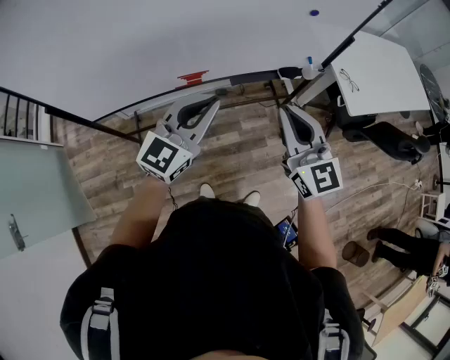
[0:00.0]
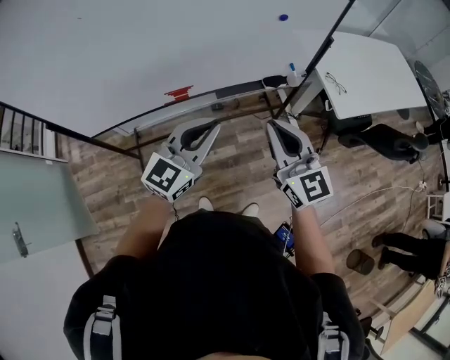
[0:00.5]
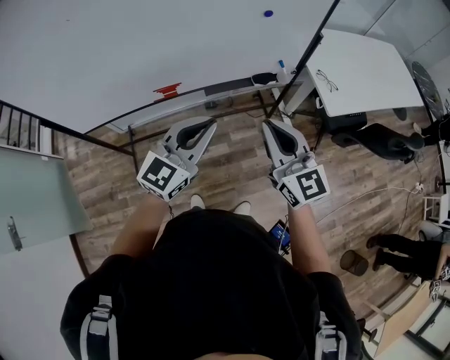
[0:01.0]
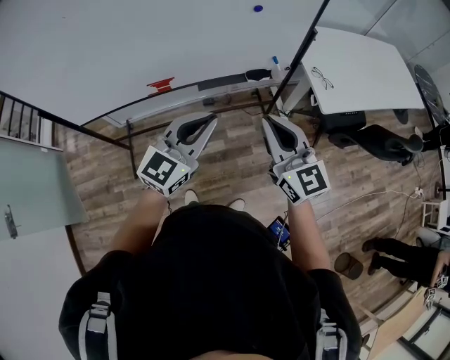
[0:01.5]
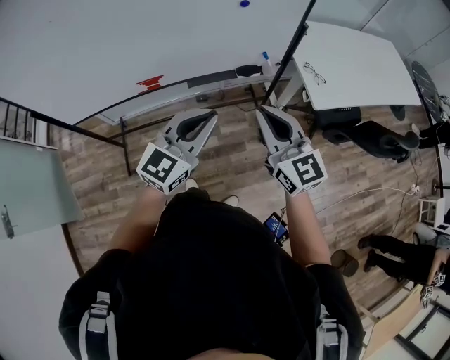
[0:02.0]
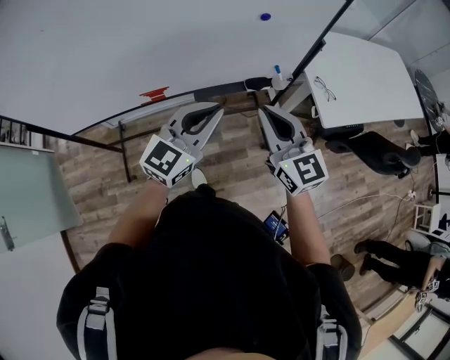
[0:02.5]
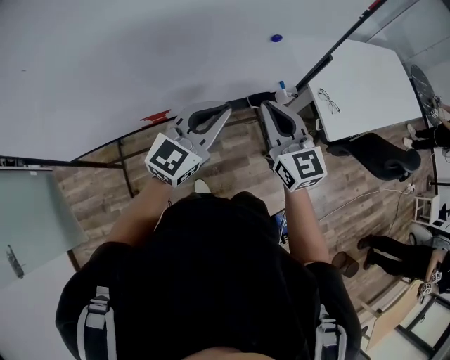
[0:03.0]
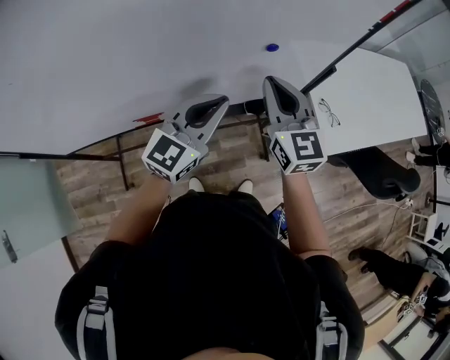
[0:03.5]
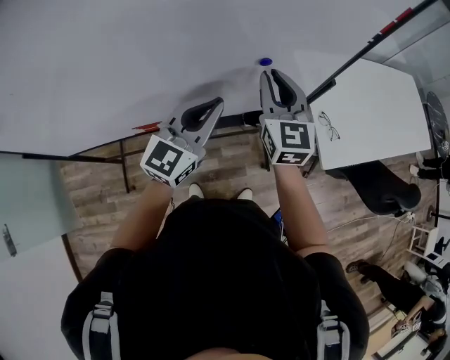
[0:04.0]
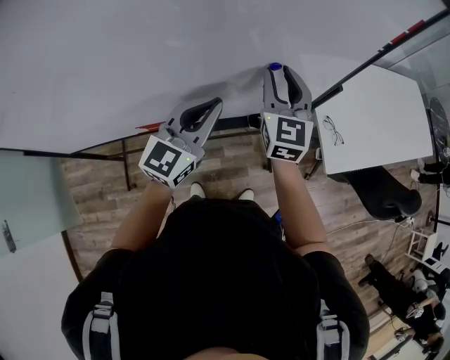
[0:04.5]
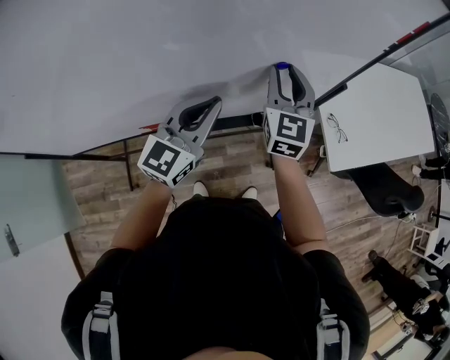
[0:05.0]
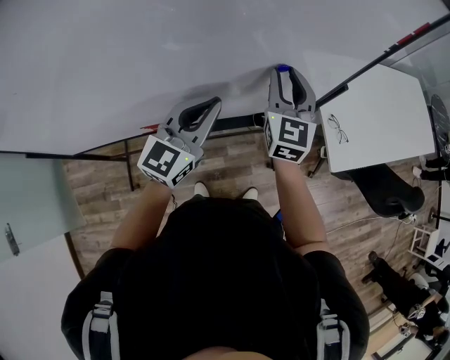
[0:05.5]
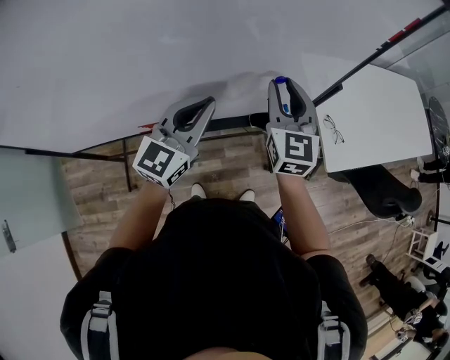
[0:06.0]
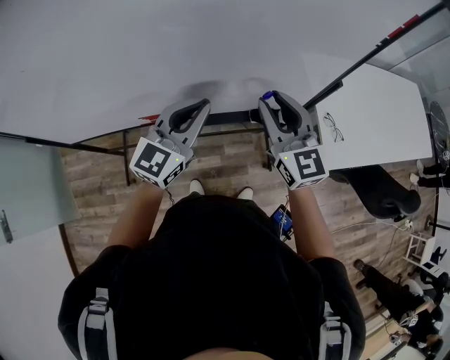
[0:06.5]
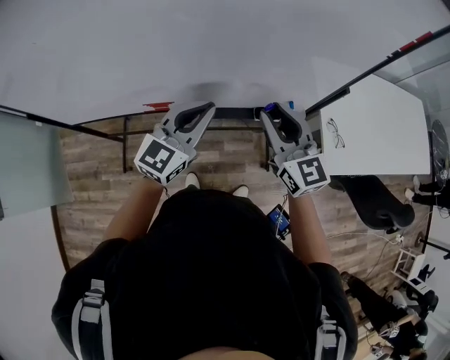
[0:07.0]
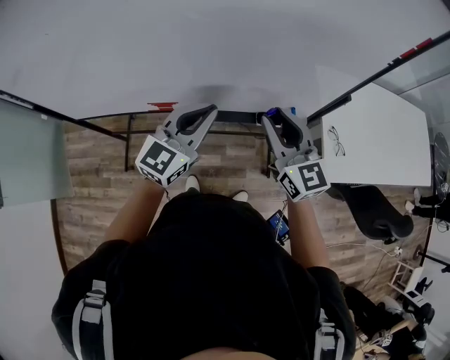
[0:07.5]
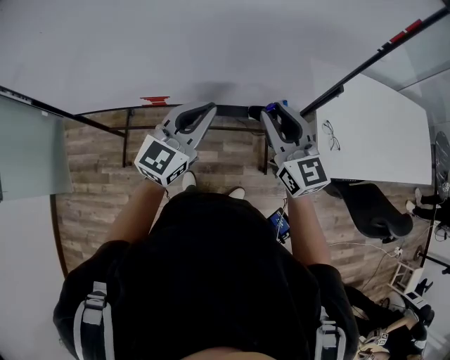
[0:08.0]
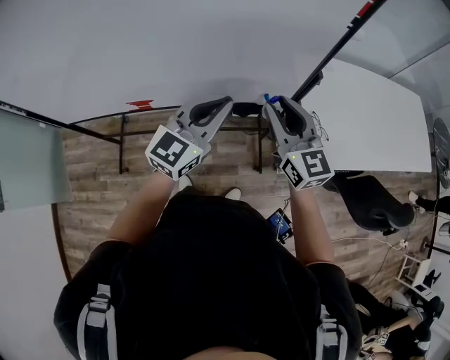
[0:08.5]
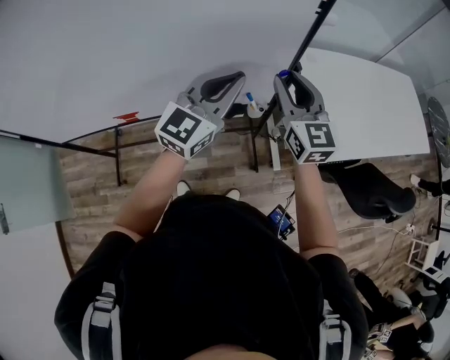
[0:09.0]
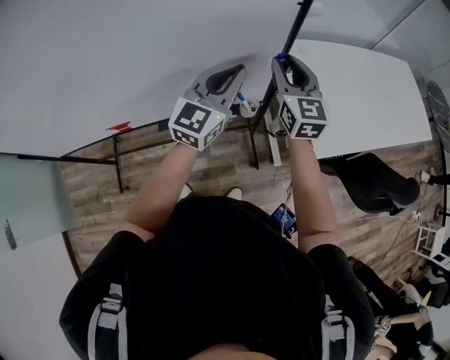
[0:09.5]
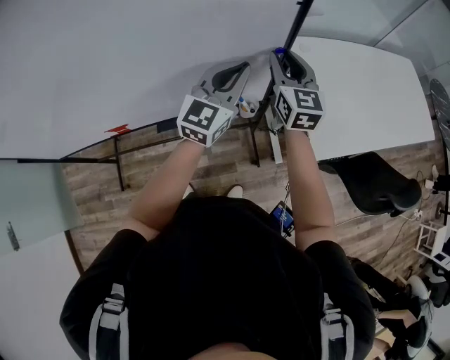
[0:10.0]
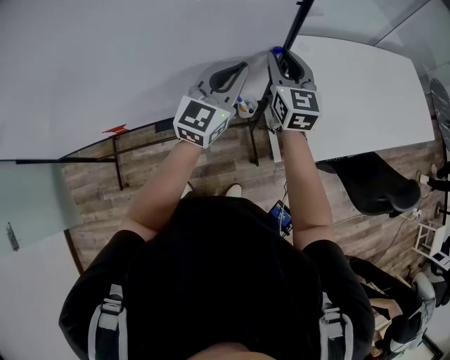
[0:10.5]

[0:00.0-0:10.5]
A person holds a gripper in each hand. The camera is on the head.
0:00.0 to 0:02.0: The grippers both shift to the right by approximately 20 cm.
0:02.0 to 0:04.0: The grippers both shift forward by roughly 30 cm.
0:04.0 to 0:06.5: The left gripper moves roughly 5 cm. The right gripper heads backward, covering some 10 cm.
0:06.5 to 0:08.5: Both grippers move to the right, some 15 cm.
0:08.5 to 0:10.5: The two grippers go roughly 20 cm forward and to the right. The right gripper rotates about 20 degrees.

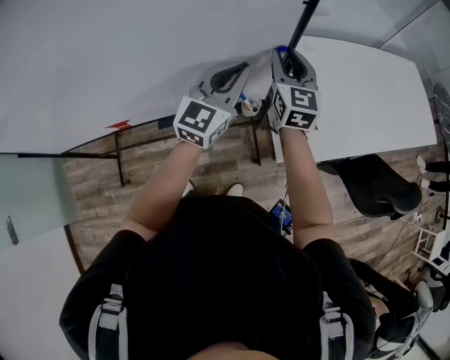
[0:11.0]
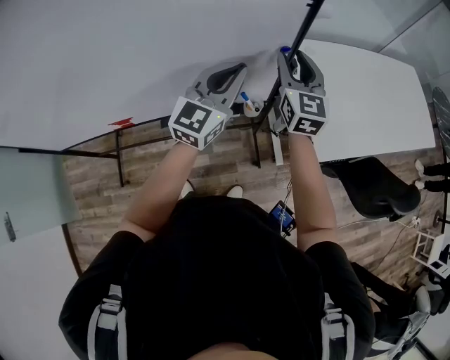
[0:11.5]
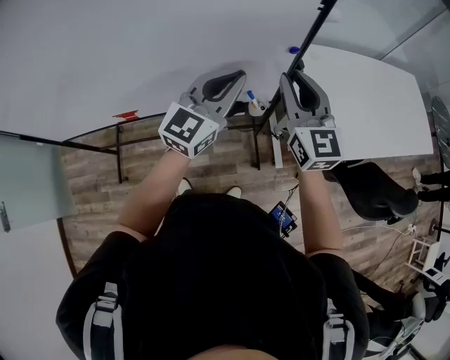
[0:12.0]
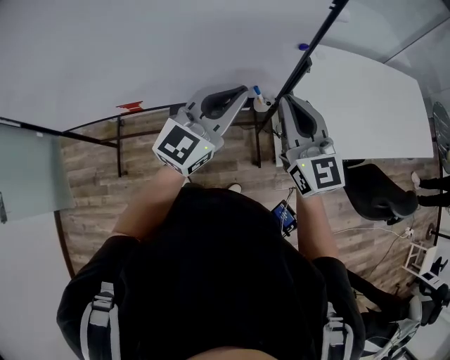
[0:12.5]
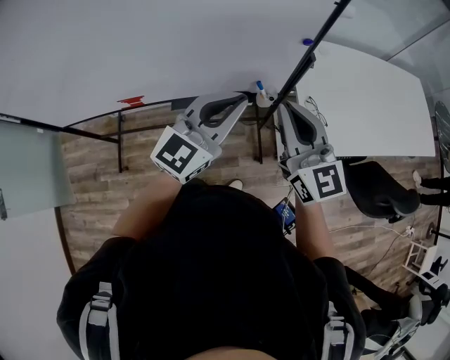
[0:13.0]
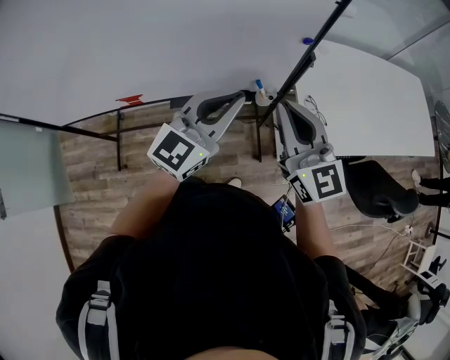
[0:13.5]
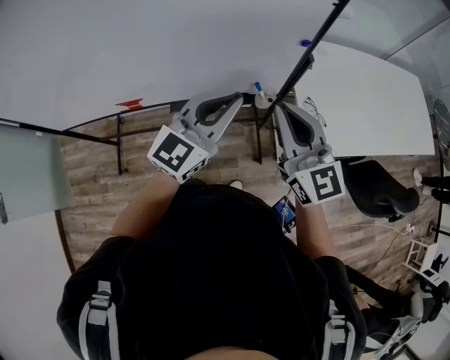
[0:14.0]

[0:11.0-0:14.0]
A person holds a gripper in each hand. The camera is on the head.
0:11.0 to 0:12.5: The left gripper moves backward, approximately 15 cm. The right gripper is displaced backward by some 20 cm, rotates roughly 20 degrees, and closes.
0:12.5 to 0:14.0: The grippers make only small movements.

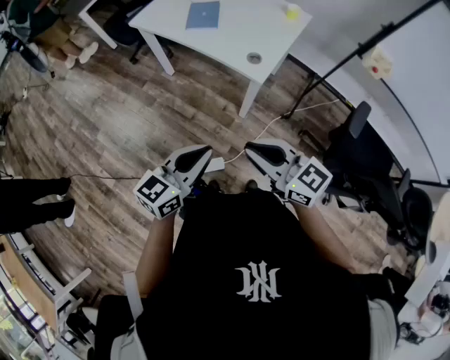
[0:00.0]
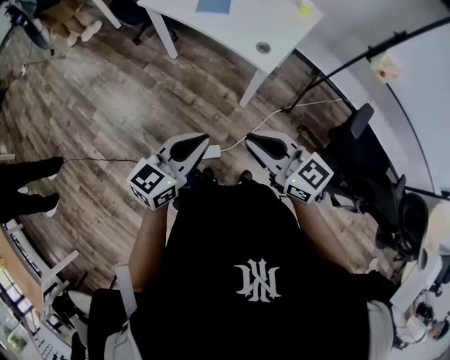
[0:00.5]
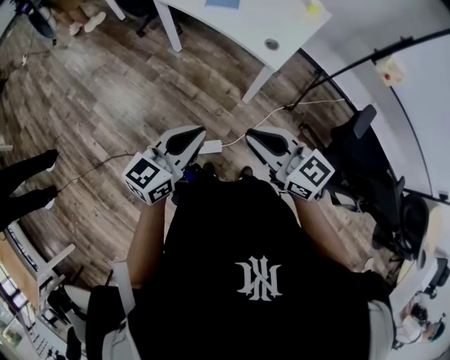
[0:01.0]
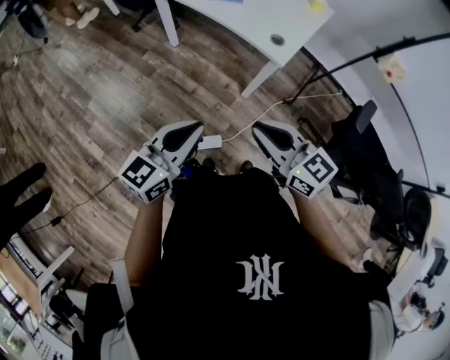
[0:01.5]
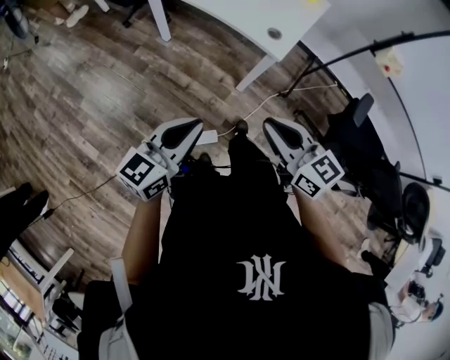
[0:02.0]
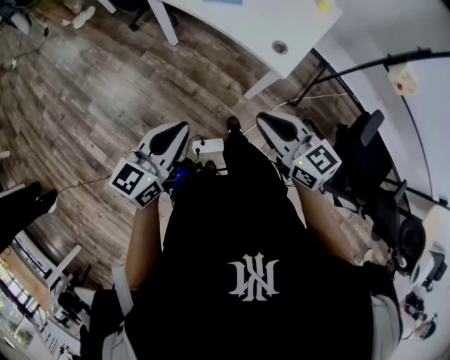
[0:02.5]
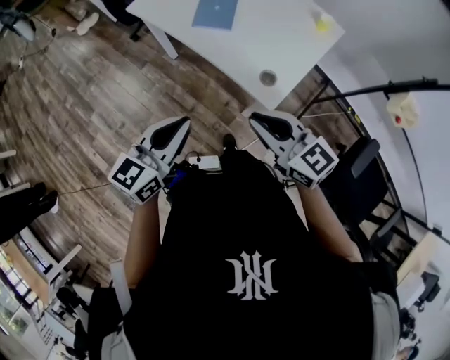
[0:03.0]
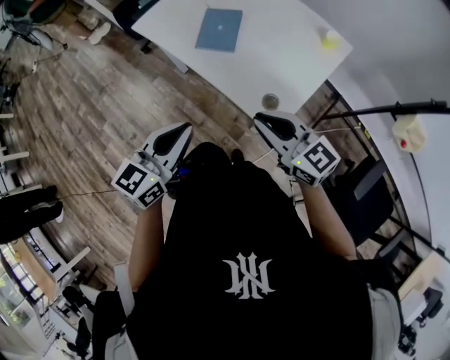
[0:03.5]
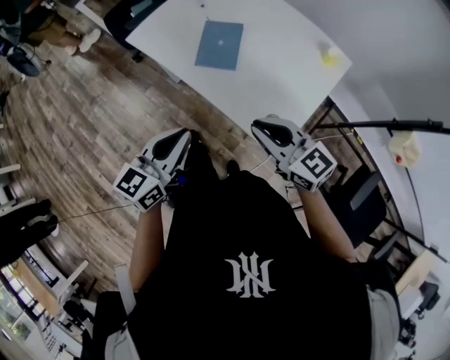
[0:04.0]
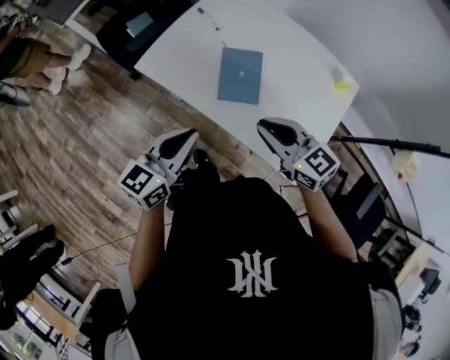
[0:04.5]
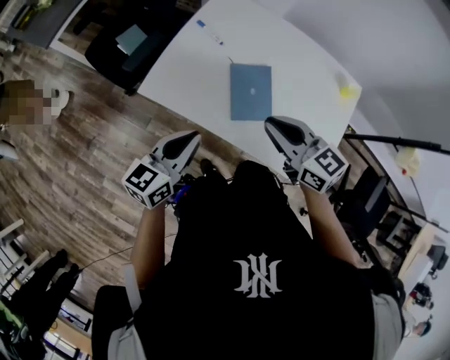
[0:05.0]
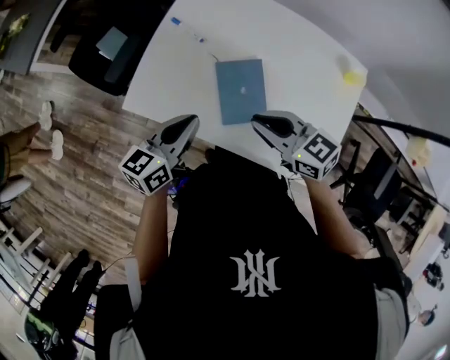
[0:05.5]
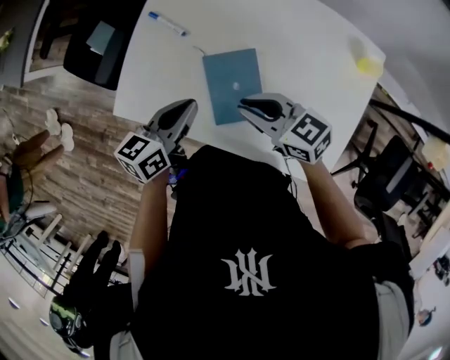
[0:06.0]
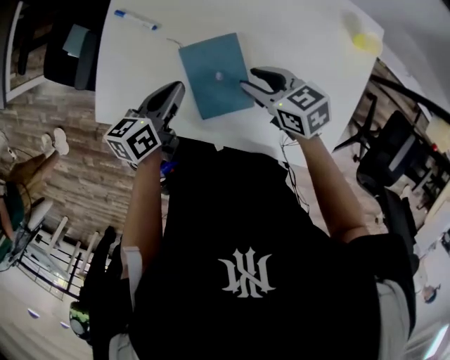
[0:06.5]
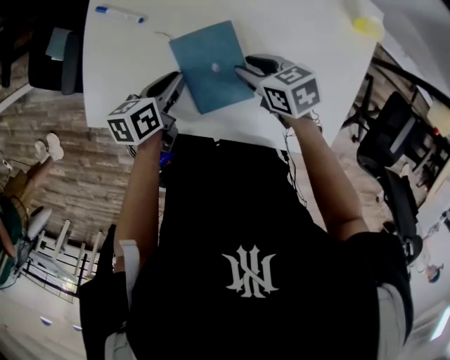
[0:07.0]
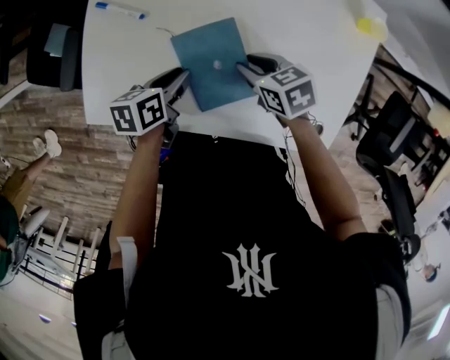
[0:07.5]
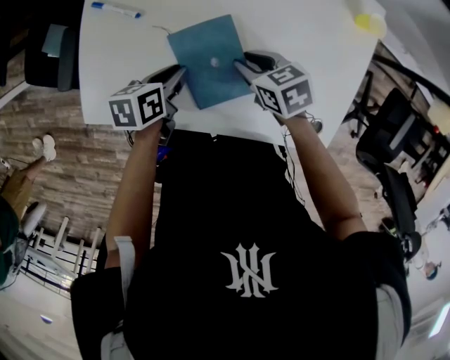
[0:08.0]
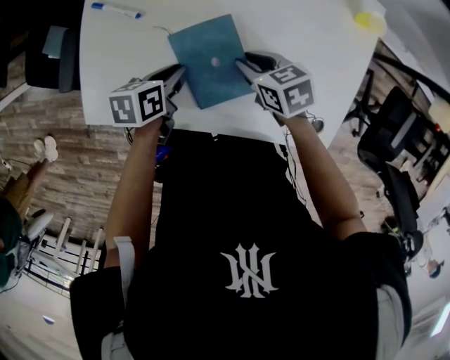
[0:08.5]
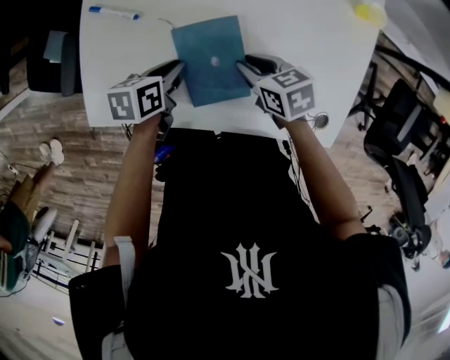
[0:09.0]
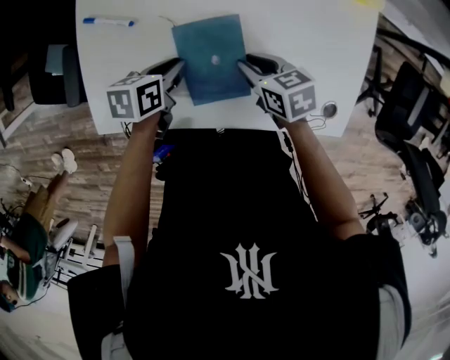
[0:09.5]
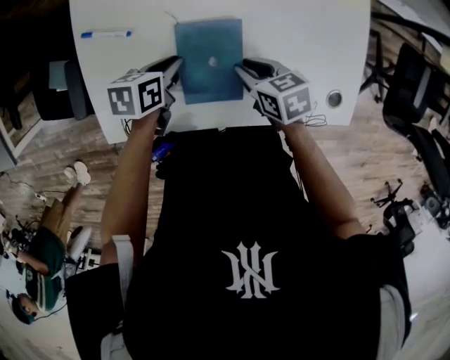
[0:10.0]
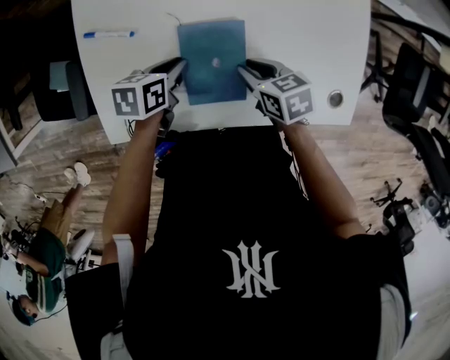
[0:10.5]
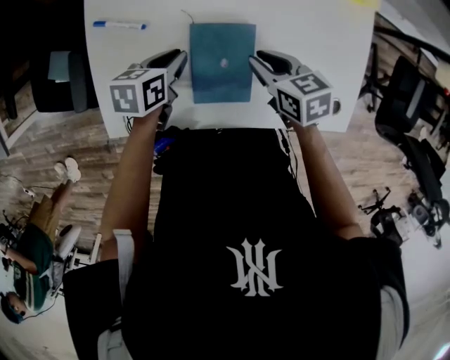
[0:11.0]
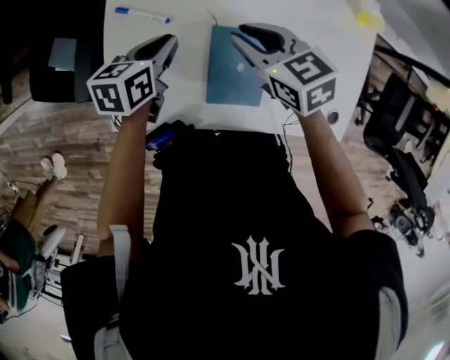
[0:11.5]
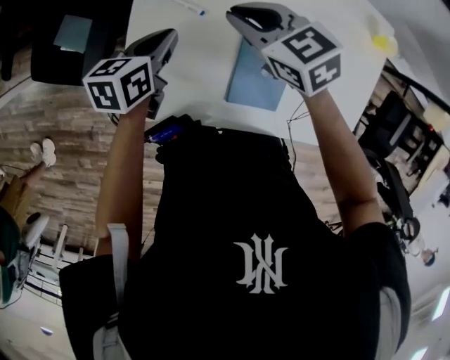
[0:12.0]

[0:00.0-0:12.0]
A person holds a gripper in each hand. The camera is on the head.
0:00.0 to 0:02.0: The left gripper moves to the left, roughly 10 cm.
0:02.0 to 0:04.0: Both grippers move forward, roughly 35 cm.
0:04.0 to 0:06.0: Both grippers move forward, some 35 cm. The left gripper swivels roughly 30 degrees. The right gripper changes its angle by about 20 degrees.
0:06.0 to 0:08.0: The right gripper is displaced downward and to the right by roughly 15 cm, and tilts its fingers roughly 30 degrees downward; the left gripper shifts roughly 15 cm downward, and changes its angle by roughly 30 degrees.
0:08.0 to 0:10.0: The right gripper turns by about 20 degrees, while the left gripper changes its angle by about 20 degrees.
0:10.0 to 0:12.0: The left gripper moves to the left and upward, some 20 cm, and rotates about 20 degrees. The right gripper moves to the left, forward and upward, approximately 30 cm, and turns by about 40 degrees.

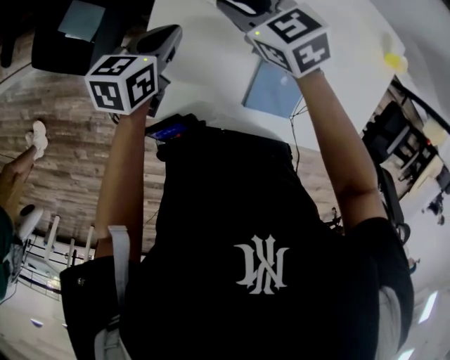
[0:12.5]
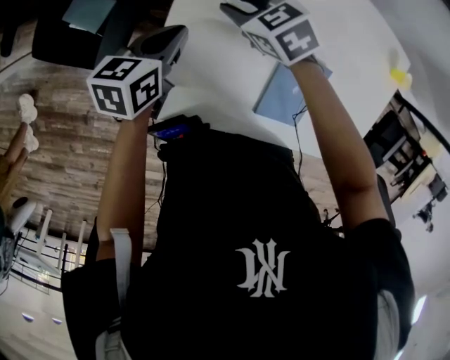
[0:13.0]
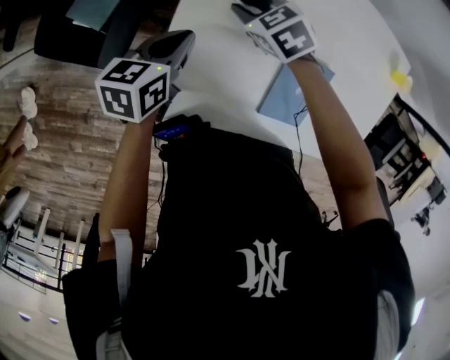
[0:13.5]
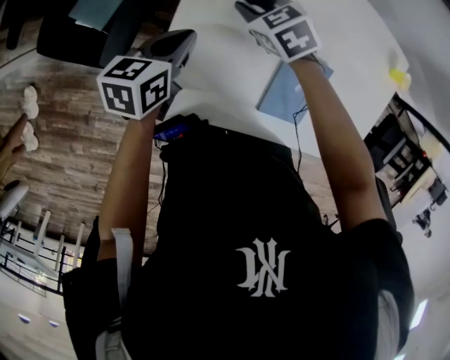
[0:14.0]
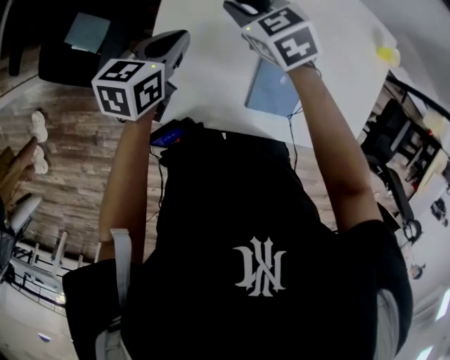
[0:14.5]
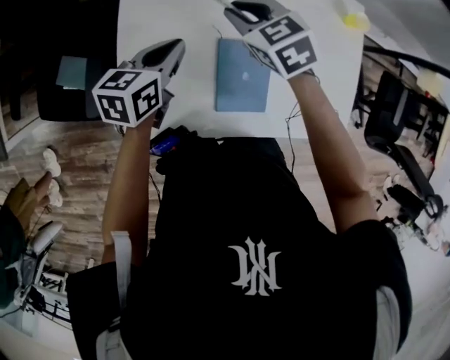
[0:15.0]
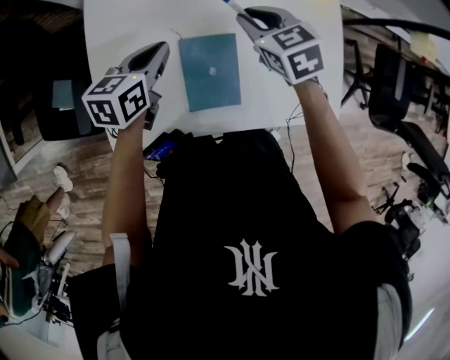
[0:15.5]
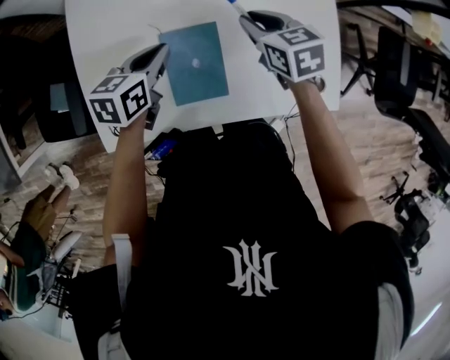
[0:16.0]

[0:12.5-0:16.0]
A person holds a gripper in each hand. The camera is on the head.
0:12.5 to 0:14.5: The right gripper moves approximately 10 cm downward and comes back.
0:14.5 to 0:16.0: The right gripper heads to the right, covering about 35 cm, and turns by roughly 40 degrees; the left gripper travels to the right by some 20 cm.
